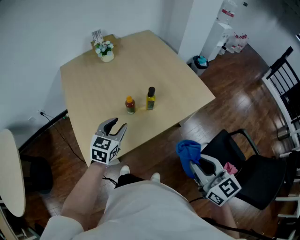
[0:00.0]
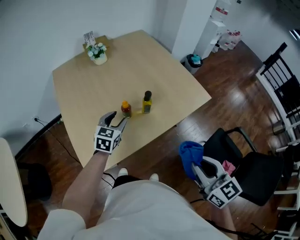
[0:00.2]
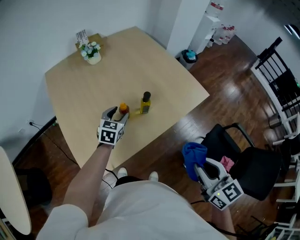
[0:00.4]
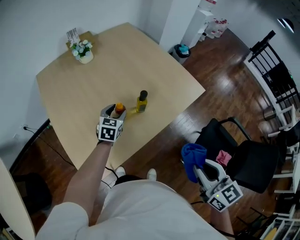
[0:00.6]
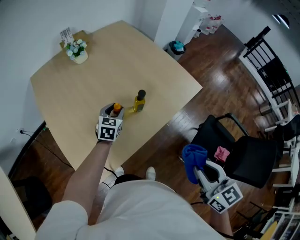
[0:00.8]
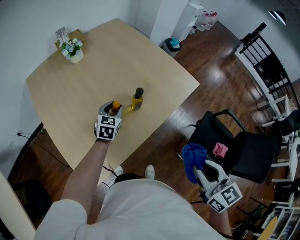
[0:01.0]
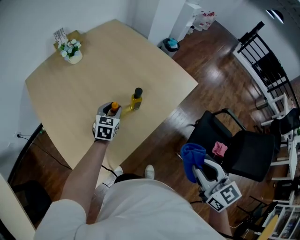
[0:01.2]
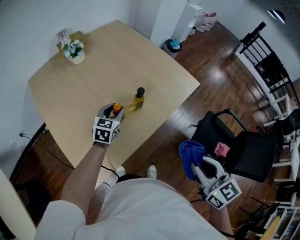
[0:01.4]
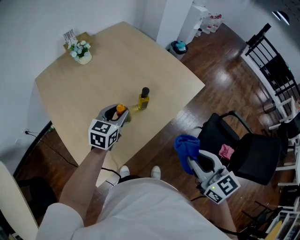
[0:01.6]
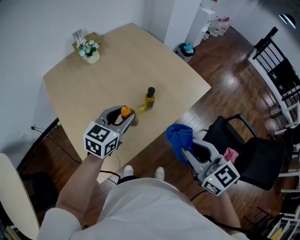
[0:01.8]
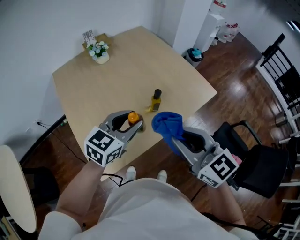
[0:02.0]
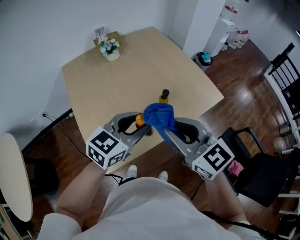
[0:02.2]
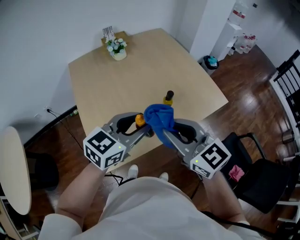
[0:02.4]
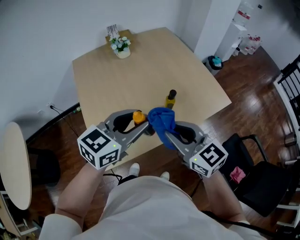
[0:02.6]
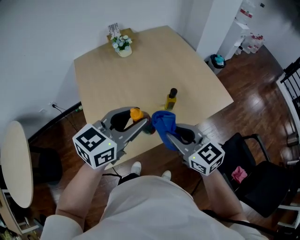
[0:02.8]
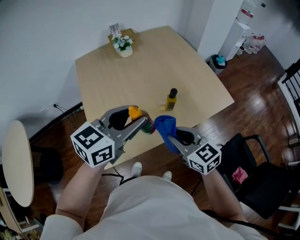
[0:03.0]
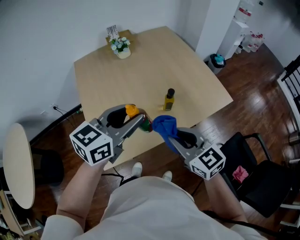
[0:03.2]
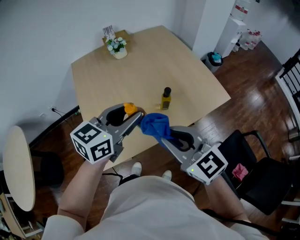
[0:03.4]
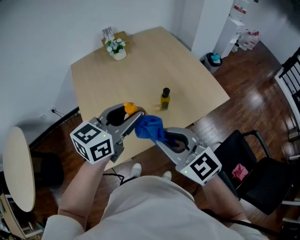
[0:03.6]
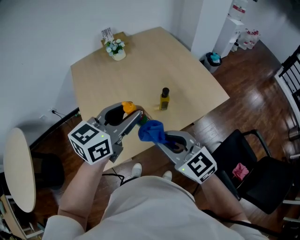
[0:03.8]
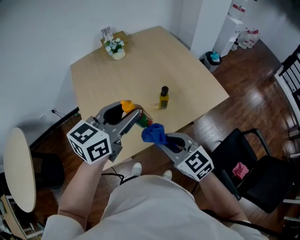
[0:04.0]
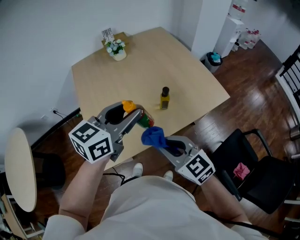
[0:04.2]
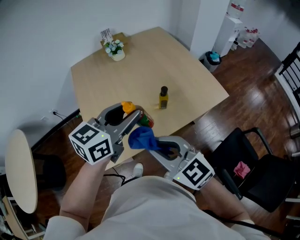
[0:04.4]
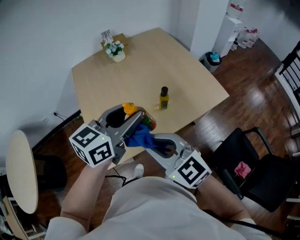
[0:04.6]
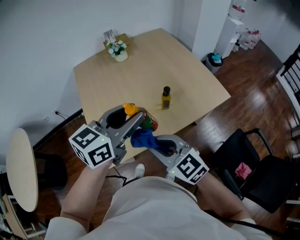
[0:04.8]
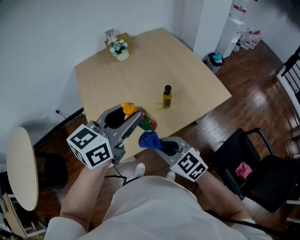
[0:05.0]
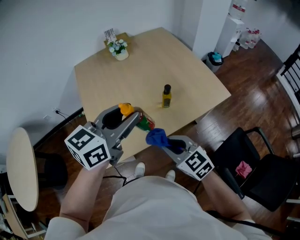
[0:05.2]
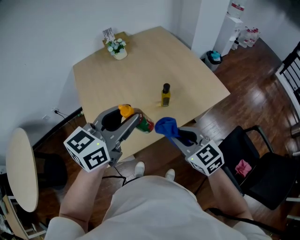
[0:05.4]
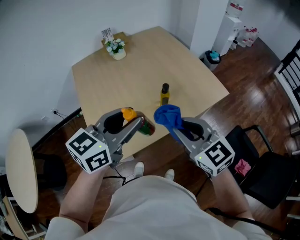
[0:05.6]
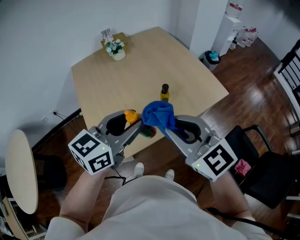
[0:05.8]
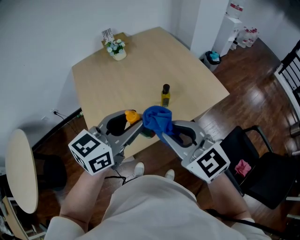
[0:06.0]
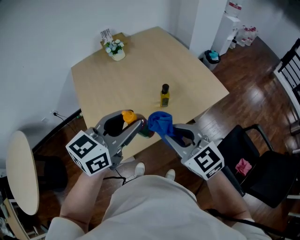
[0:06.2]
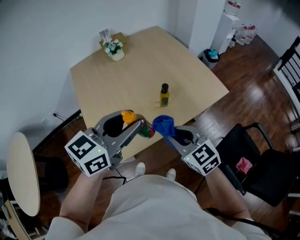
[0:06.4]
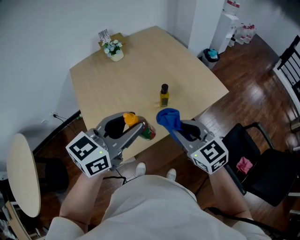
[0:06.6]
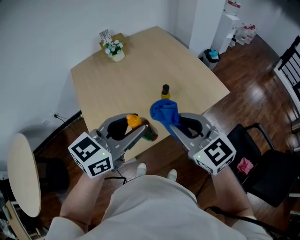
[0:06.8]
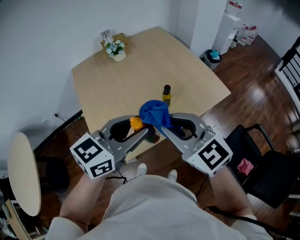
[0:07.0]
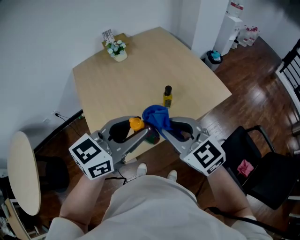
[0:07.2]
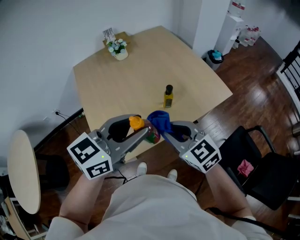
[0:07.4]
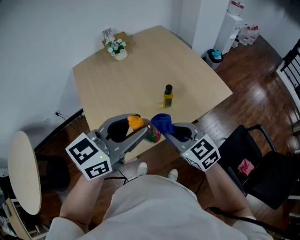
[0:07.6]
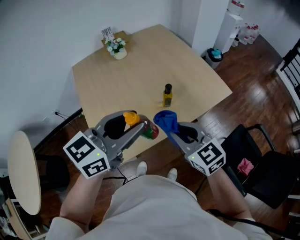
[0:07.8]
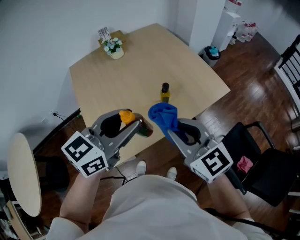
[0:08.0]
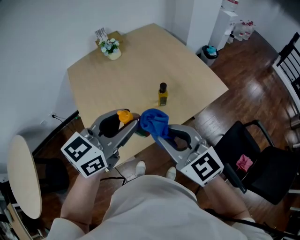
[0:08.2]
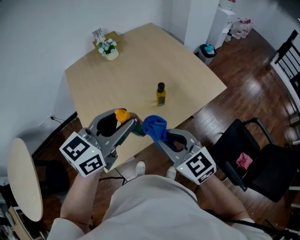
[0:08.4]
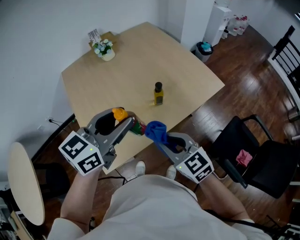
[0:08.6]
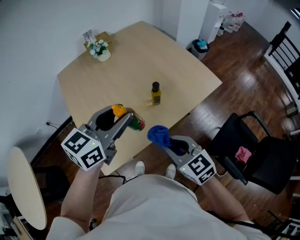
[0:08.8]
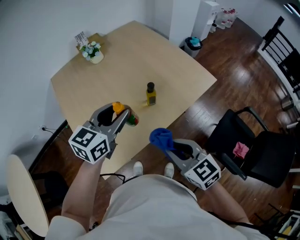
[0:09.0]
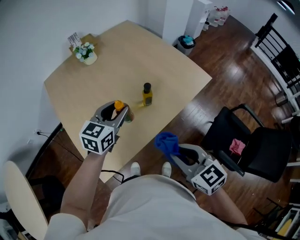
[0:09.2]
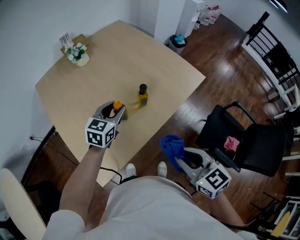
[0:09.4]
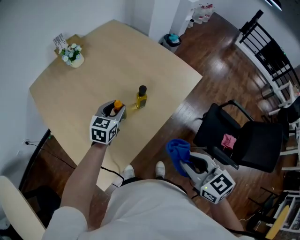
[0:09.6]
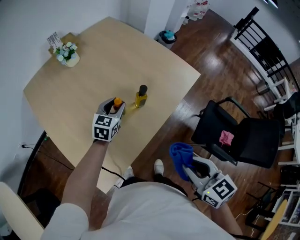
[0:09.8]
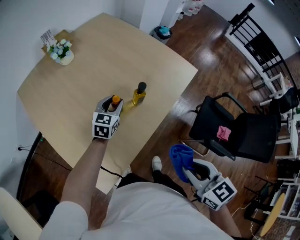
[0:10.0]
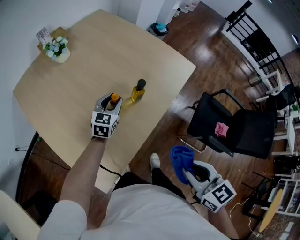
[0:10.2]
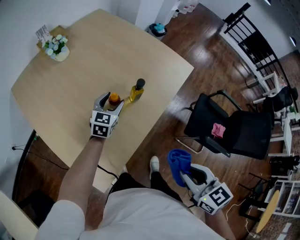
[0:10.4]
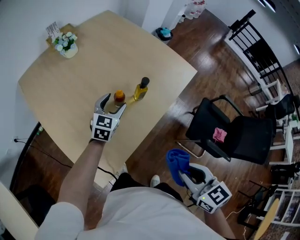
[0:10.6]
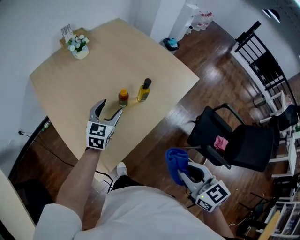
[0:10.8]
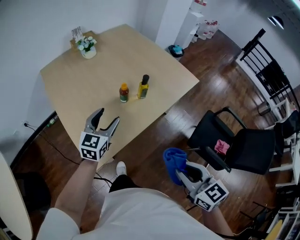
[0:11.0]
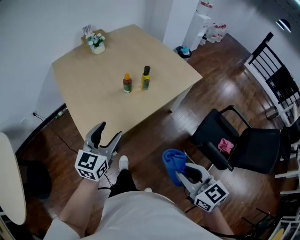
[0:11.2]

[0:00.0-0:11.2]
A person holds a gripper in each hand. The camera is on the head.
0:00.0 to 0:01.6: The left gripper travels forward by approximately 10 cm; the right gripper travels to the left by approximately 5 cm.
0:01.6 to 0:03.2: The right gripper heads to the left and forward, covering approximately 10 cm, and rotates about 30 degrees. Meanwhile the left gripper travels upward and backward by about 20 cm.
0:03.2 to 0:04.8: The right gripper swings up and down, about 10 cm each way, with 3 reversals.
0:04.8 to 0:06.4: The right gripper swings up and down, about 15 cm each way, with 2 reversals.
0:06.4 to 0:08.0: The right gripper goes up and down, about 10 cm each way, reversing 2 times.
0:08.0 to 0:09.6: The right gripper travels downward and backward by about 10 cm, and rotates roughly 40 degrees. Meanwhile the left gripper shifts some 30 cm downward and forward.
0:09.6 to 0:11.2: The left gripper heads backward, covering some 30 cm, and opens its fingers, while the right gripper moves backward, roughly 20 cm.

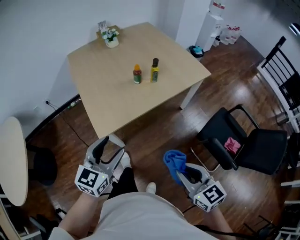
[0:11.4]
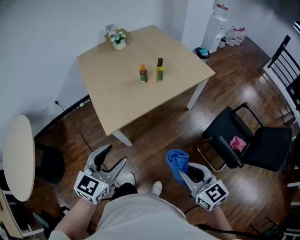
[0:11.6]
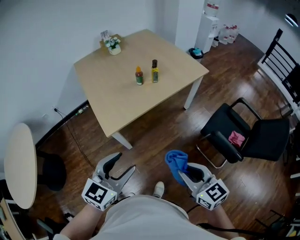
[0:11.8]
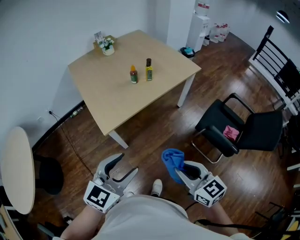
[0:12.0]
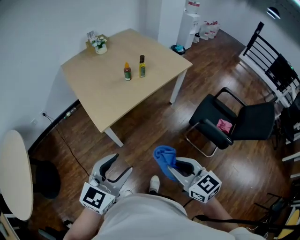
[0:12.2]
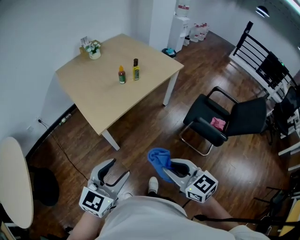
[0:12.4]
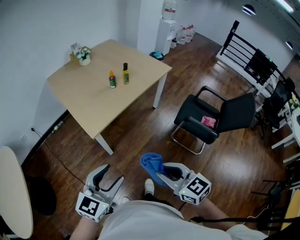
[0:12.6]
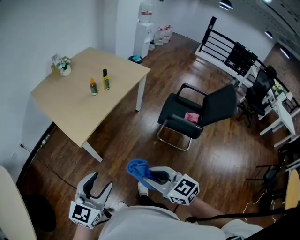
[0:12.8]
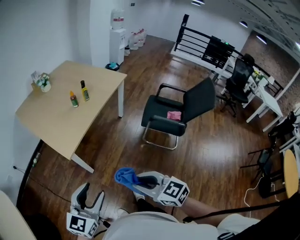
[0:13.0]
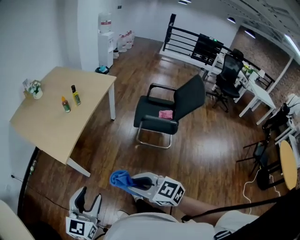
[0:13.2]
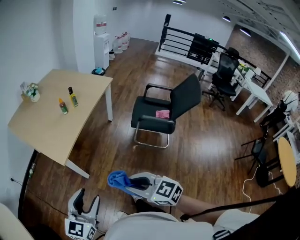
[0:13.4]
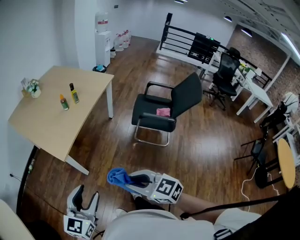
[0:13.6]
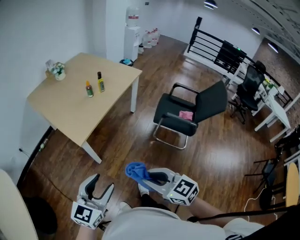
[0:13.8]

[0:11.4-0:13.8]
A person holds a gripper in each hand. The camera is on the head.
0:11.4 to 0:12.6: The left gripper heads backward, covering roughly 25 cm, while the right gripper is displaced backward and to the left by some 20 cm.
0:12.6 to 0:13.8: The right gripper is displaced backward by about 10 cm. The left gripper ends up about 5 cm from where it was.

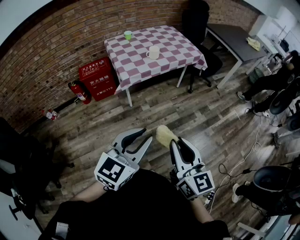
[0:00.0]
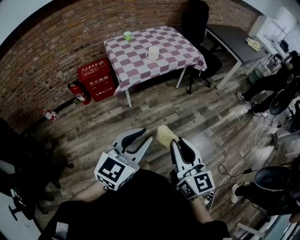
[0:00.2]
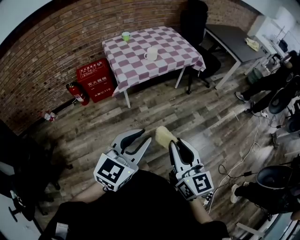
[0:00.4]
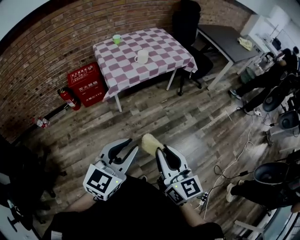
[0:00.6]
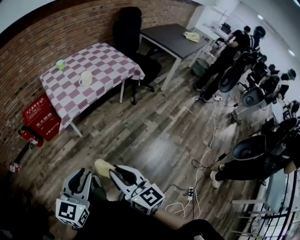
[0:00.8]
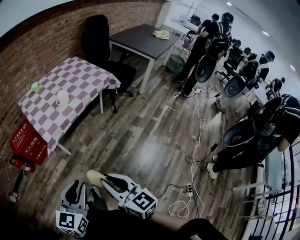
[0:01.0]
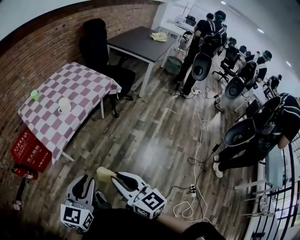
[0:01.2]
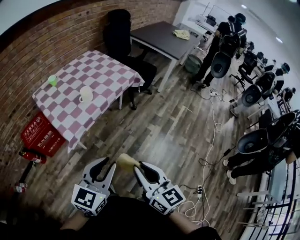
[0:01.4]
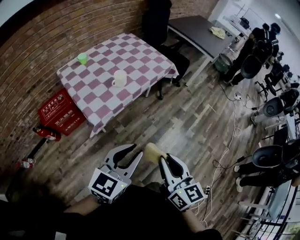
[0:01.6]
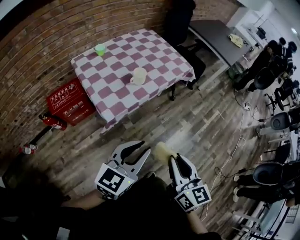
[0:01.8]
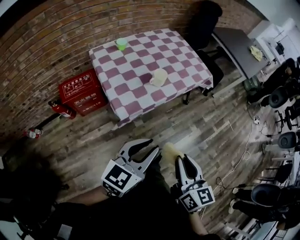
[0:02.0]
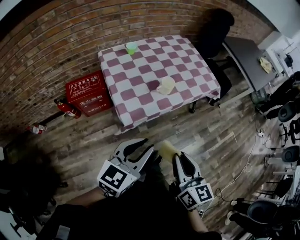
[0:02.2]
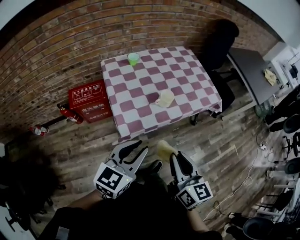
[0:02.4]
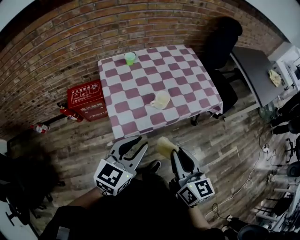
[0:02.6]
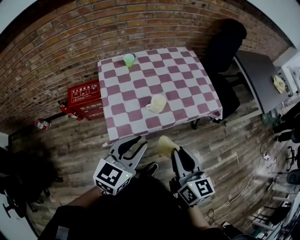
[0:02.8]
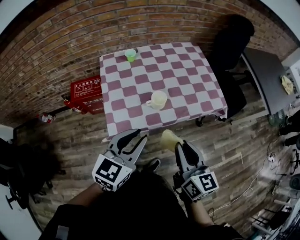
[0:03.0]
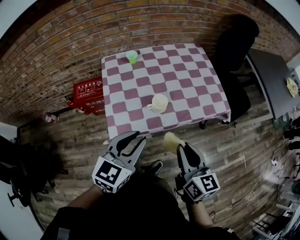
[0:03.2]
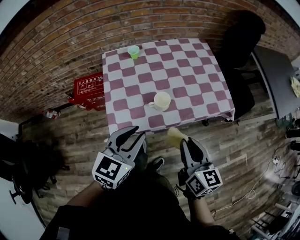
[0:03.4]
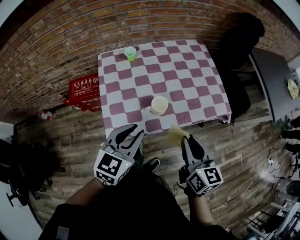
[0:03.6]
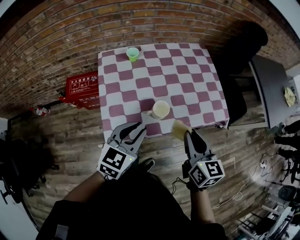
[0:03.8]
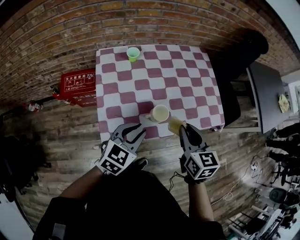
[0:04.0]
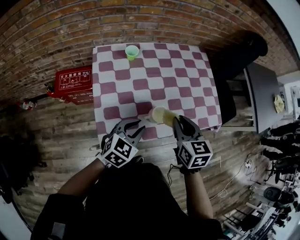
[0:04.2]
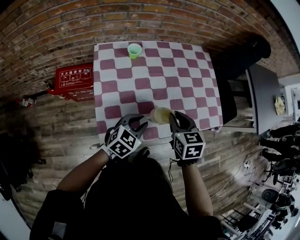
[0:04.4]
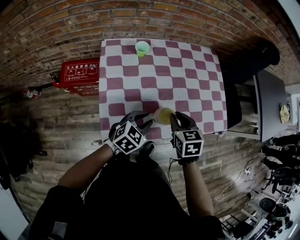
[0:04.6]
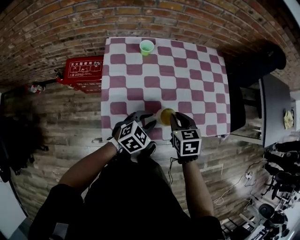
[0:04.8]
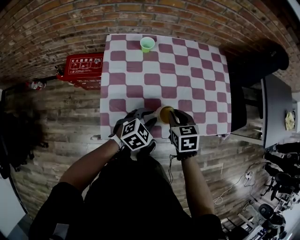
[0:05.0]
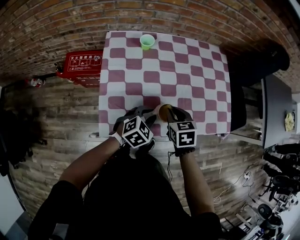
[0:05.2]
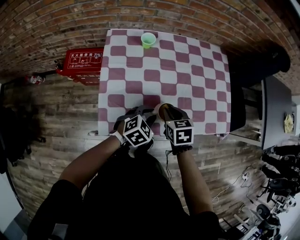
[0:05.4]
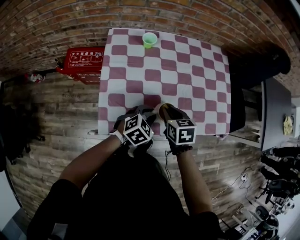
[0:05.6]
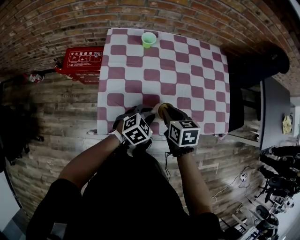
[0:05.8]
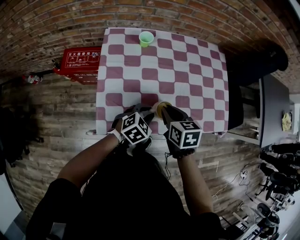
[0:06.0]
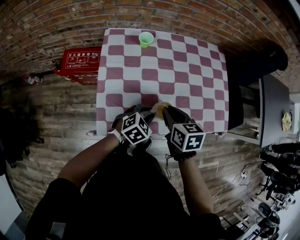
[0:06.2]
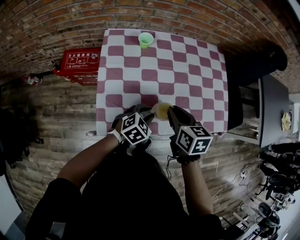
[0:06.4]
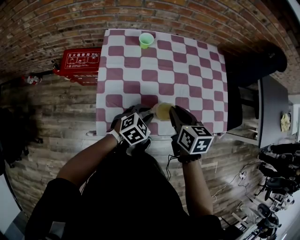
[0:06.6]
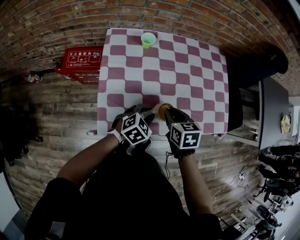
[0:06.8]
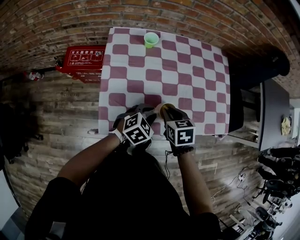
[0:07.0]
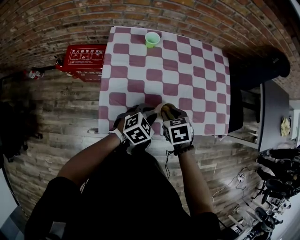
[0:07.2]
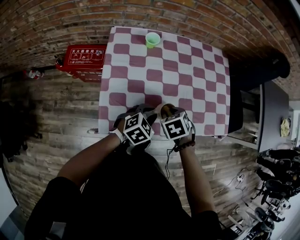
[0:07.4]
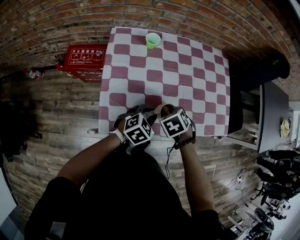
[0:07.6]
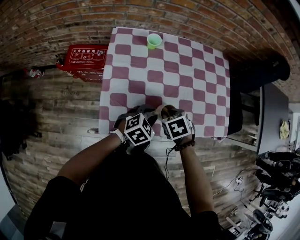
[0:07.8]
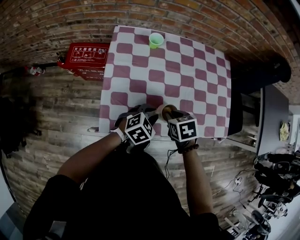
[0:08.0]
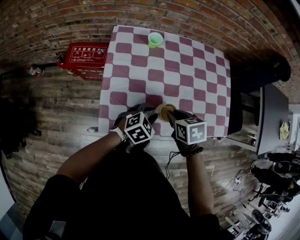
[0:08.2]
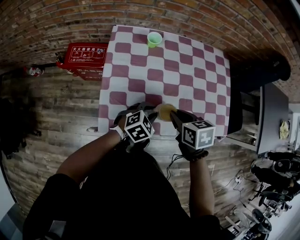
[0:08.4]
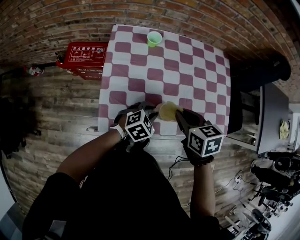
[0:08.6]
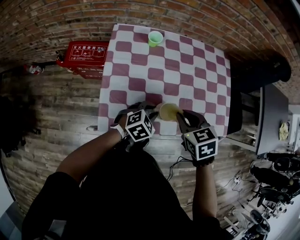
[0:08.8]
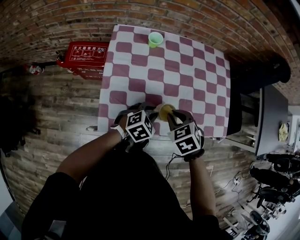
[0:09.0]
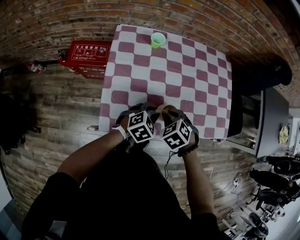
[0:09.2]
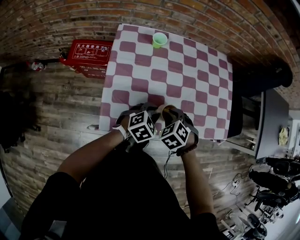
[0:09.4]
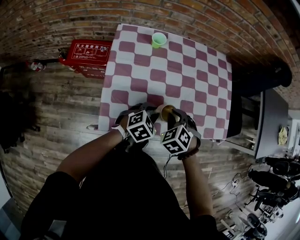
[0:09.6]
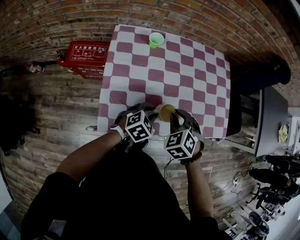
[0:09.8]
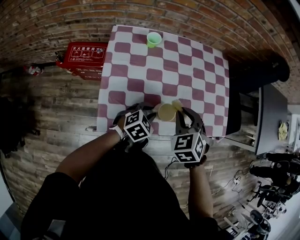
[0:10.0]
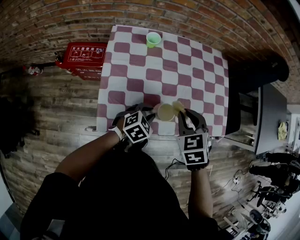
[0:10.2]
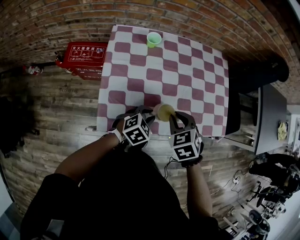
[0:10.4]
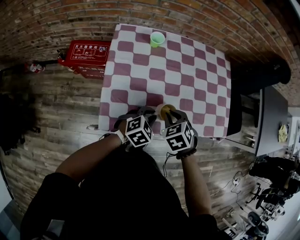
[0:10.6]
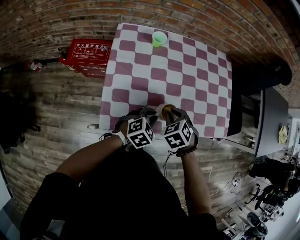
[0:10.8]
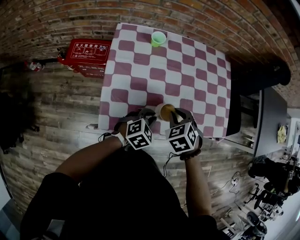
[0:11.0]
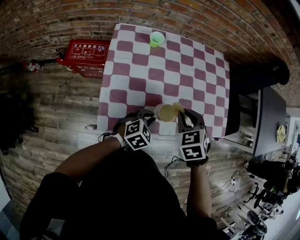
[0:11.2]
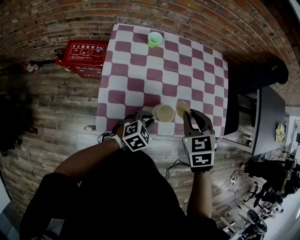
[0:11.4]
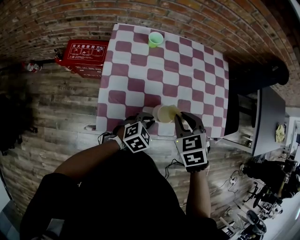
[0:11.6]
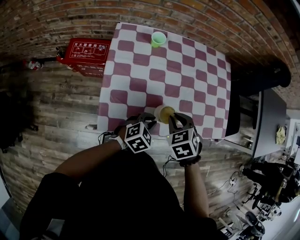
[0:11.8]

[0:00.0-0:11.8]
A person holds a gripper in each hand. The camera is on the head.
0:00.0 to 0:01.4: The two grippers go approximately 20 cm forward.
0:01.4 to 0:03.0: The right gripper shifts by about 40 cm, and rotates approximately 30 degrees, while the left gripper shifts by about 35 cm, and rotates some 30 degrees.
0:03.0 to 0:04.4: The left gripper shifts approximately 25 cm downward and forward. The right gripper is displaced forward, downward and to the left by some 30 cm, and points its fingers roughly 30 degrees further downward.
0:04.4 to 0:06.0: The grippers both shift downward by approximately 5 cm.
0:06.0 to 0:07.4: The right gripper moves downward, roughly 5 cm, and changes its angle by about 40 degrees.
0:07.4 to 0:08.8: The right gripper travels upward by some 10 cm.
0:08.8 to 0:10.4: The right gripper moves up and down over approximately 10 cm, changing direction 2 times.
0:10.4 to 0:11.8: The right gripper moves up and down over some 15 cm, changing direction 2 times.
